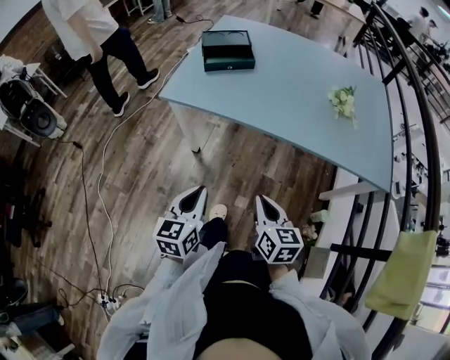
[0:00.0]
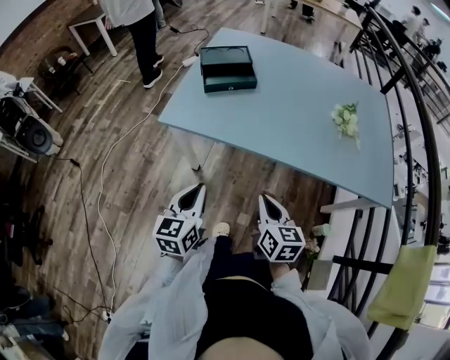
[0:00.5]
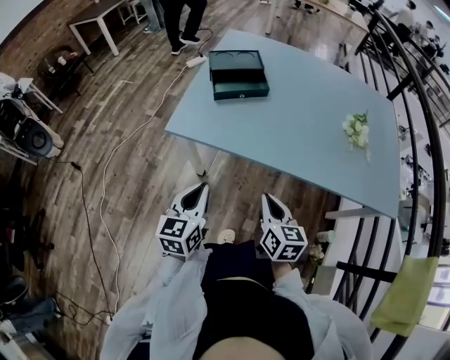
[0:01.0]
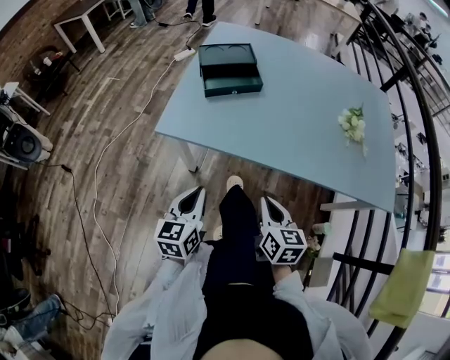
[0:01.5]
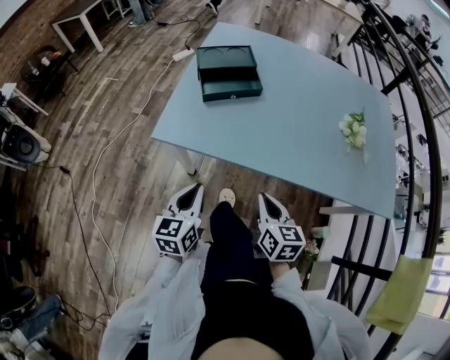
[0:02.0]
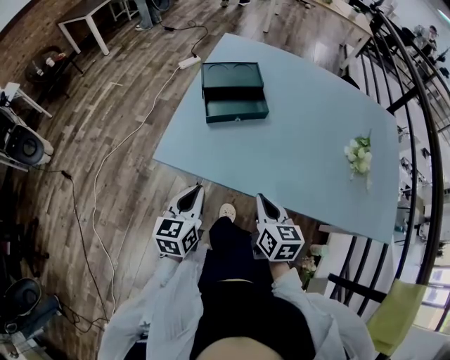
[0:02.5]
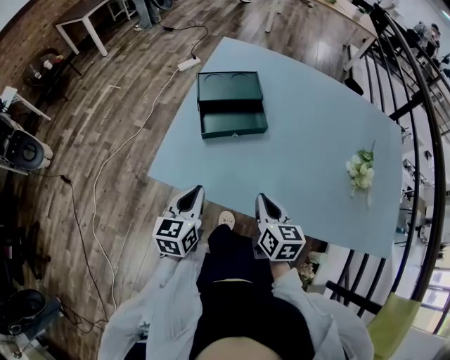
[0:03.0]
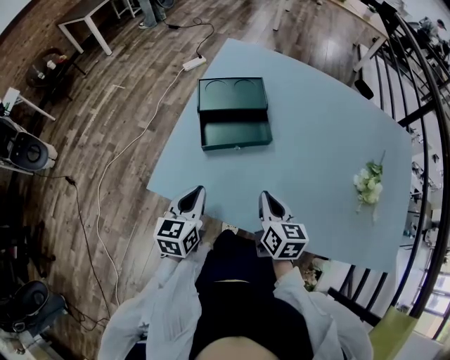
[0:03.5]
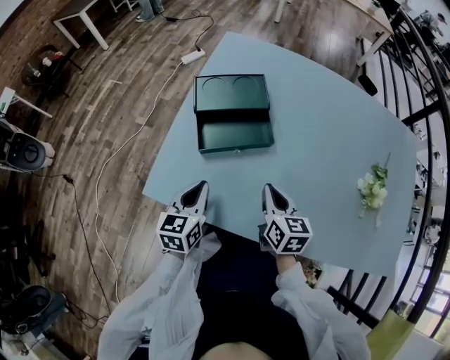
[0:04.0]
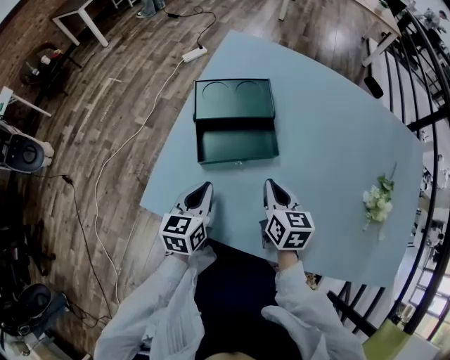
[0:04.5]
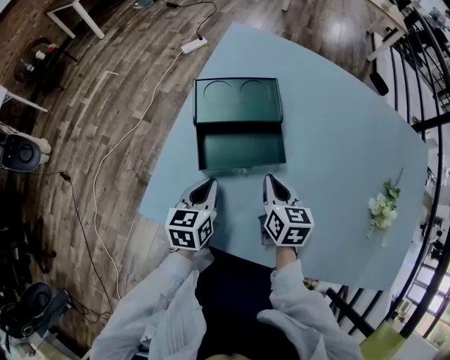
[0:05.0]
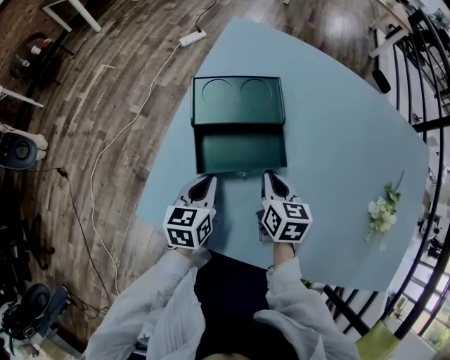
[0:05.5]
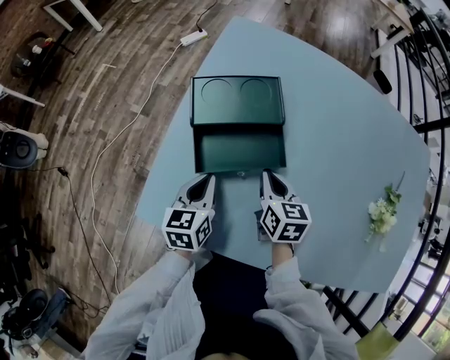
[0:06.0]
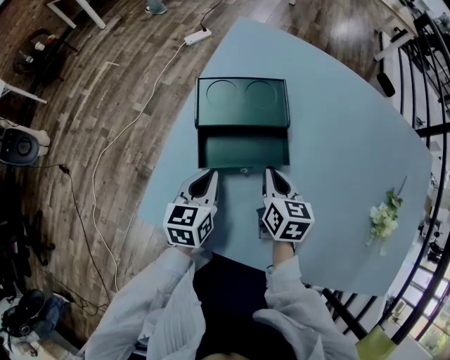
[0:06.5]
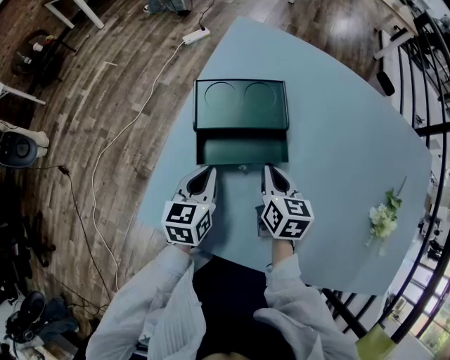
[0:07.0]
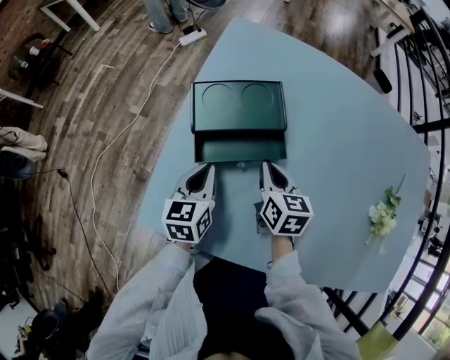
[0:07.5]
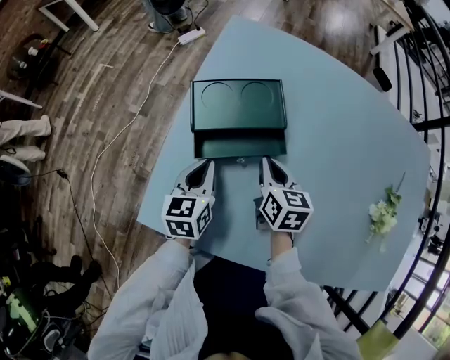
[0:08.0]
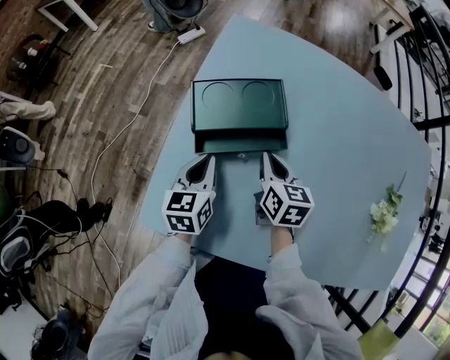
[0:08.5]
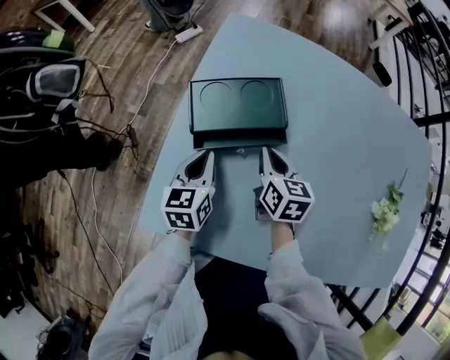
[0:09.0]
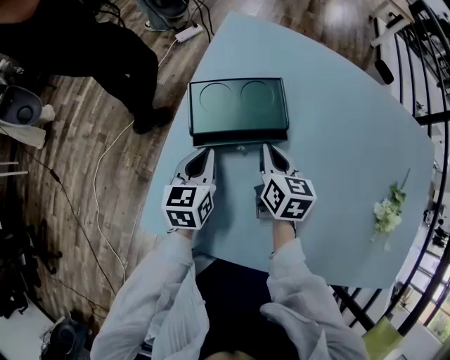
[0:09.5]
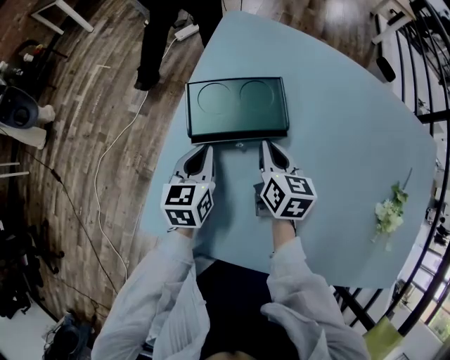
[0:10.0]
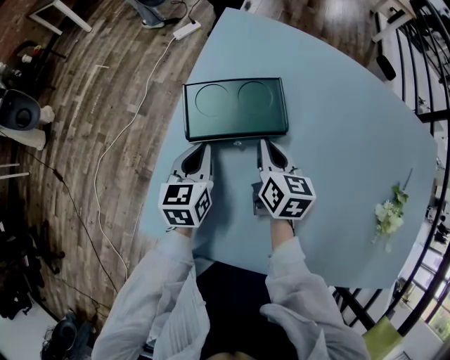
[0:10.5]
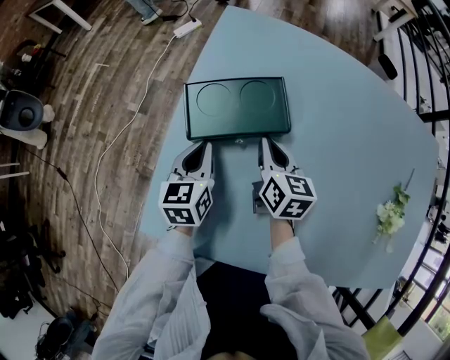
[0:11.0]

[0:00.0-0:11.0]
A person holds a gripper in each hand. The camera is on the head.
0:00.0 to 0:02.0: The grippers both shift forward by approximately 20 cm.
0:02.0 to 0:03.5: Both grippers travel together forward, roughly 20 cm.
0:03.5 to 0:05.5: The left gripper goes about 15 cm forward and downward, while the right gripper moves forward, about 15 cm.
0:05.5 to 0:07.5: The grippers move only a little.
0:07.5 to 0:09.0: There are only small adjustments of the grippers.
0:09.0 to 0:11.0: The grippers move only a little.

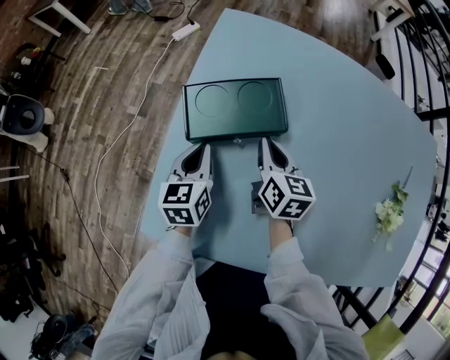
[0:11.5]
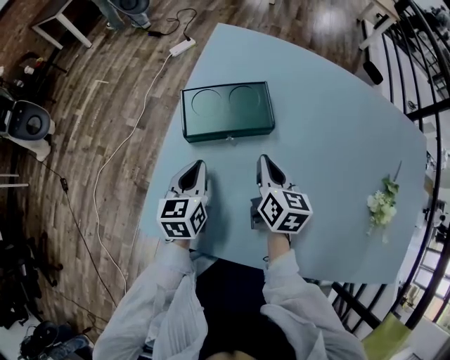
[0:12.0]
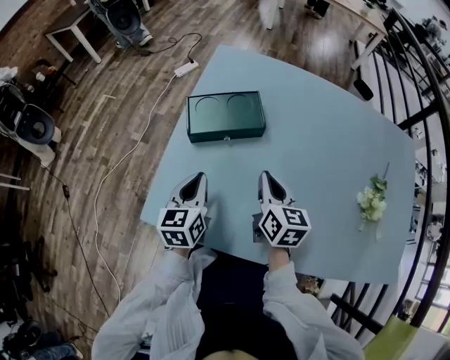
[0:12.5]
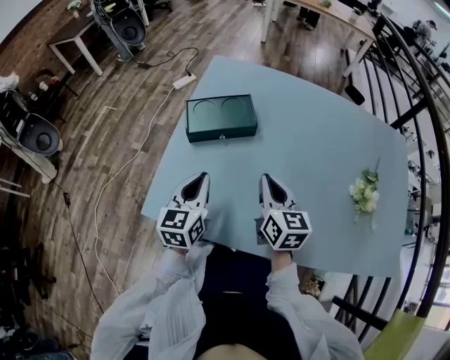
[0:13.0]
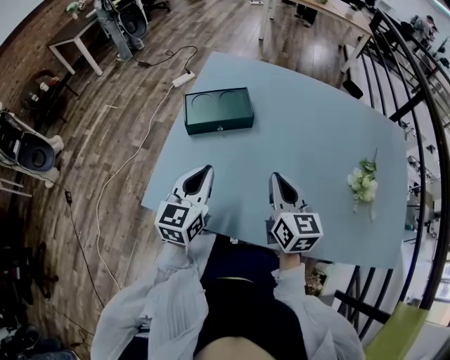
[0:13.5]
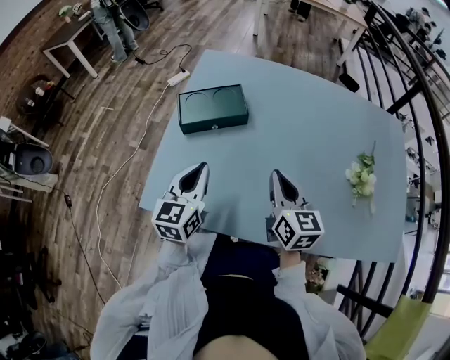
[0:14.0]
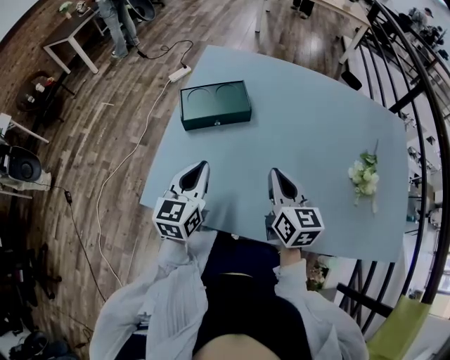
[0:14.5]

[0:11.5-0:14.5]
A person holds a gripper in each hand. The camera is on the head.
0:11.5 to 0:13.0: Both grippers move backward and upward, roughly 20 cm.
0:13.0 to 0:14.5: The right gripper shifts by about 5 cm.

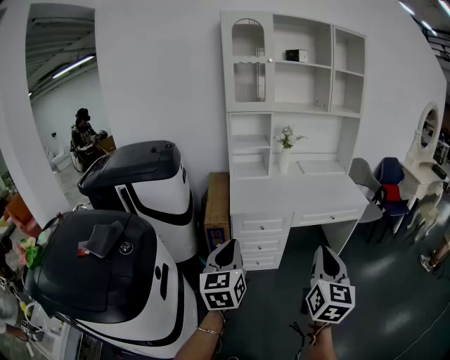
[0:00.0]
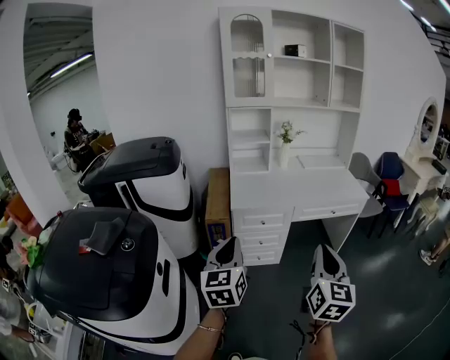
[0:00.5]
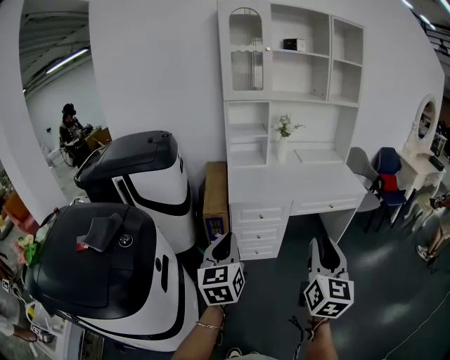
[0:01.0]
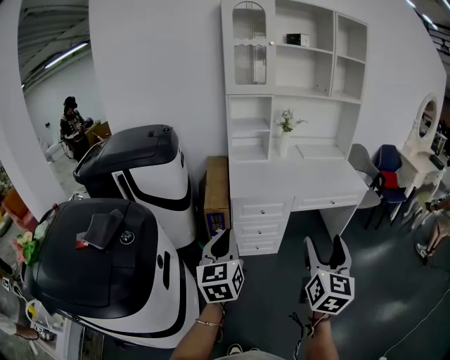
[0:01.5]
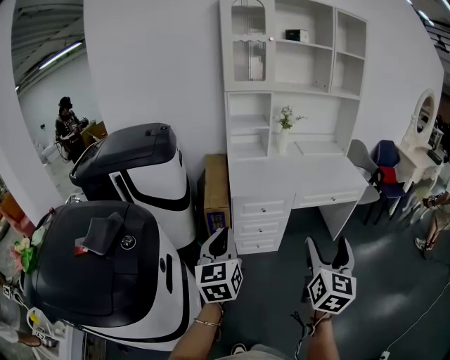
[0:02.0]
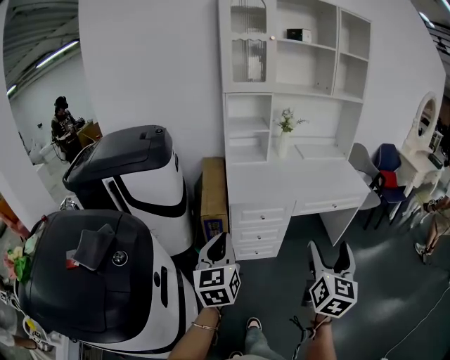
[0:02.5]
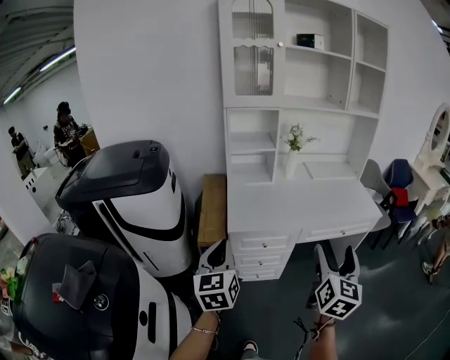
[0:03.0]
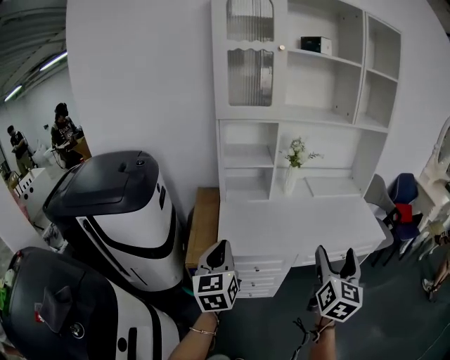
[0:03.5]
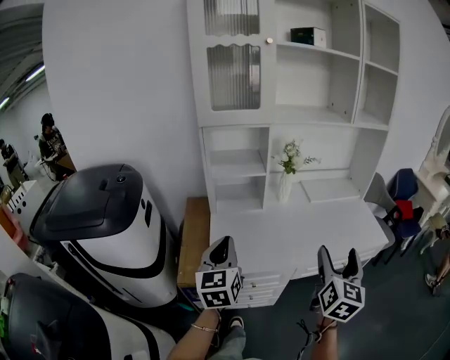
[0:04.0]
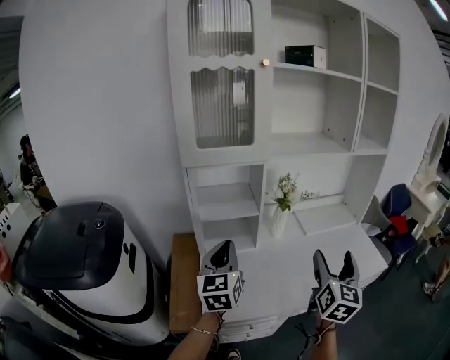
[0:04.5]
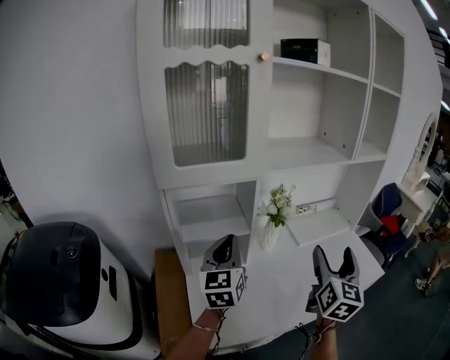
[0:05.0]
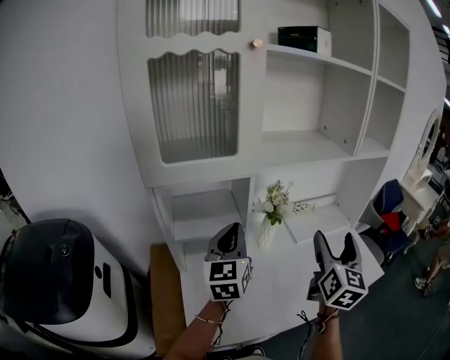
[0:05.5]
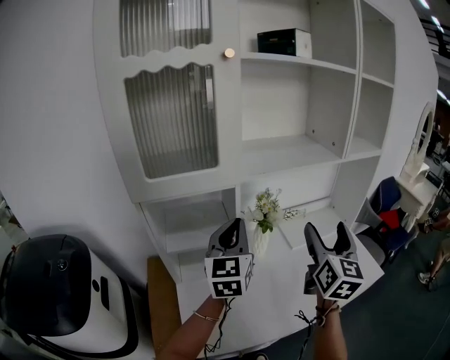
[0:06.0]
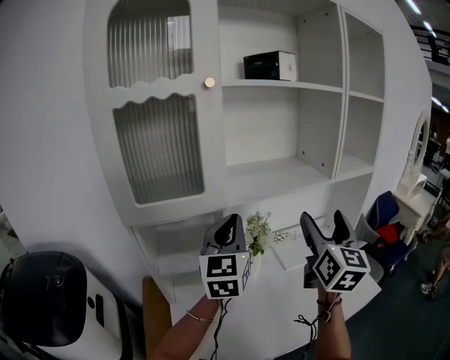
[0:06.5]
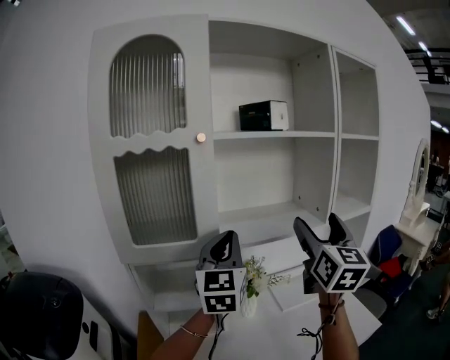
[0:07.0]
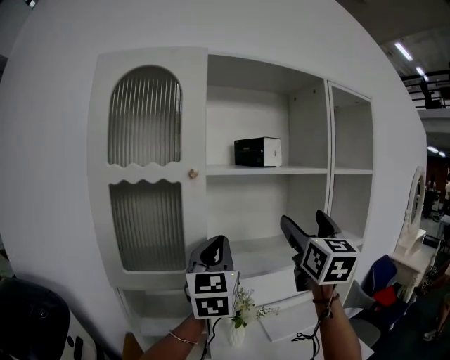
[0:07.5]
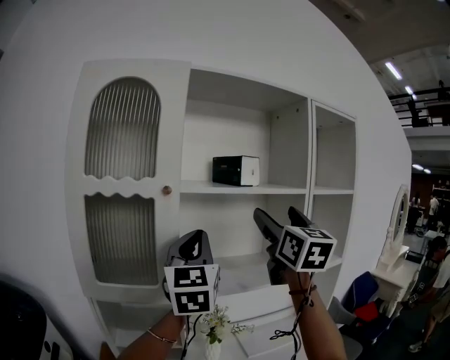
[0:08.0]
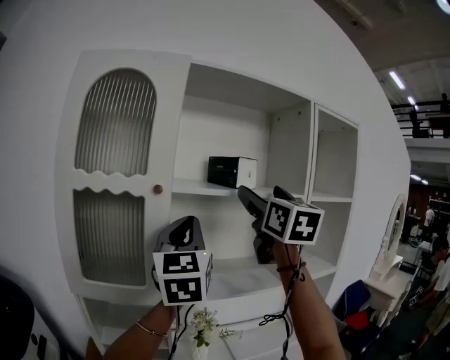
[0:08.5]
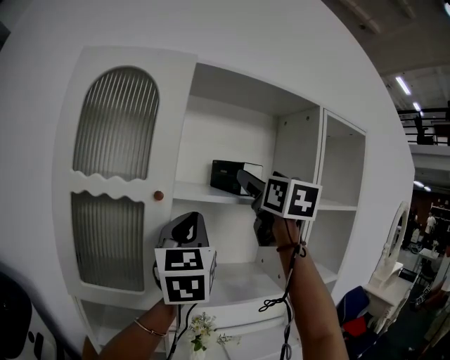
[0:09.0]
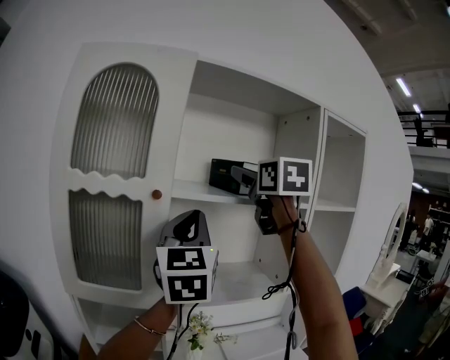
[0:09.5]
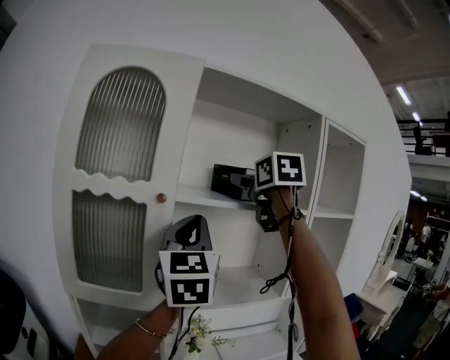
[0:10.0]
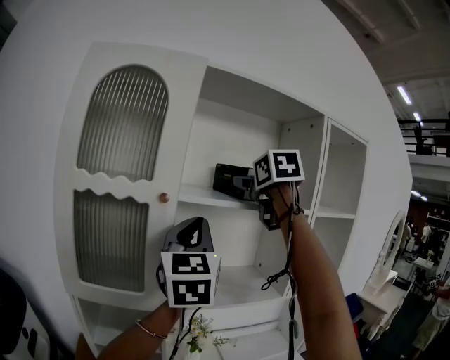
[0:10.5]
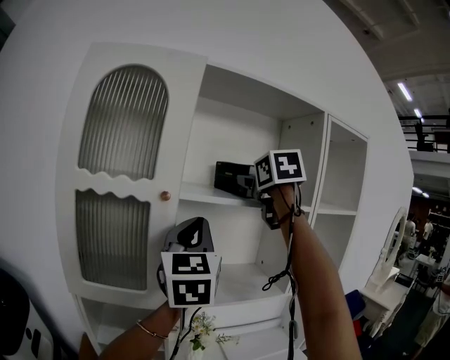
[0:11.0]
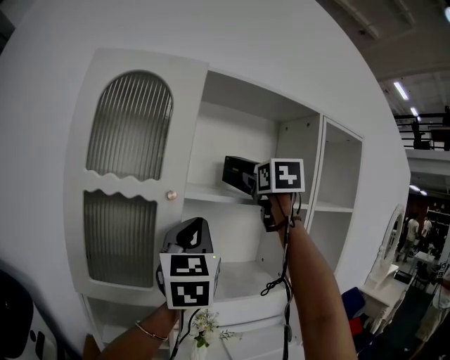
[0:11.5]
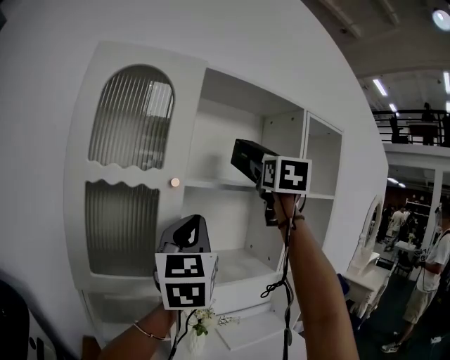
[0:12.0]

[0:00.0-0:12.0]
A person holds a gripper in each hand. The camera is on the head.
0:00.0 to 0:02.0: The right gripper opens its fingers; the left gripper goes roughly 5 cm to the left.
0:02.0 to 0:04.0: The pair of grippers is taken forward, roughly 40 cm.
0:04.0 to 0:06.0: Both grippers travel together forward, about 30 cm.
0:06.0 to 0:08.0: The right gripper is displaced upward and forward by roughly 35 cm, and swivels approximately 20 degrees, while the left gripper travels upward by approximately 30 cm, and turns by some 20 degrees.
0:08.0 to 0:10.0: The left gripper moves upward, approximately 5 cm, while the right gripper shifts some 15 cm forward and upward, and swivels about 30 degrees.
0:10.0 to 0:12.0: The left gripper shifts approximately 5 cm backward; the right gripper moves backward, some 10 cm, and rotates approximately 30 degrees.

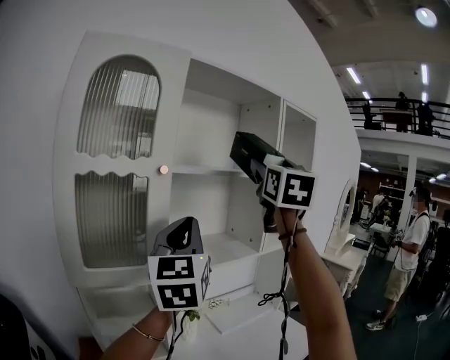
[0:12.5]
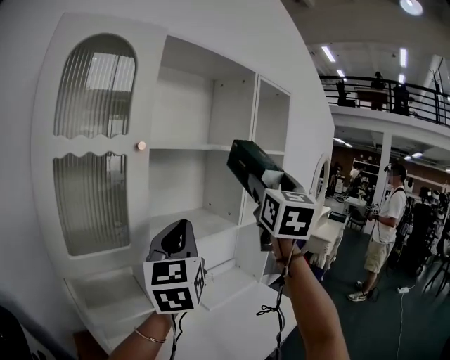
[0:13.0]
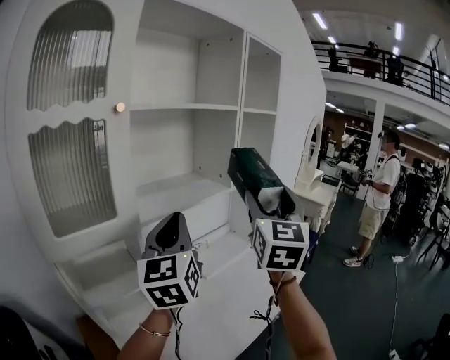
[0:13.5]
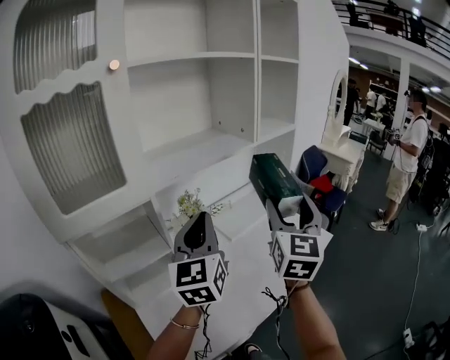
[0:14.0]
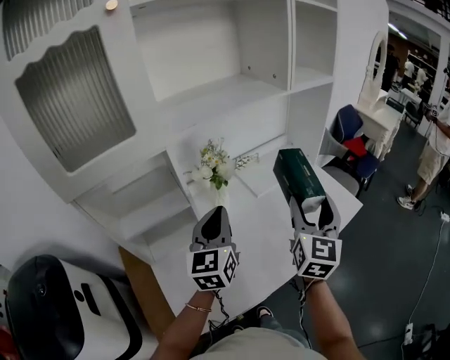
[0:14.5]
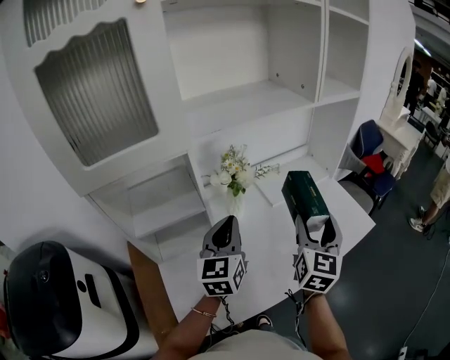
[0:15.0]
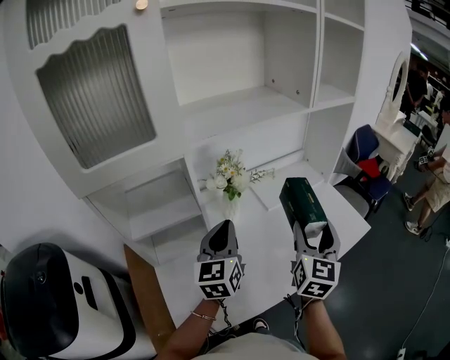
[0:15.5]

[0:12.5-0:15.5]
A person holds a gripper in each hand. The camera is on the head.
0:12.5 to 0:14.0: The left gripper moves downward, some 25 cm. The right gripper heads downward, covering approximately 40 cm, and swivels about 20 degrees.
0:14.0 to 0:15.5: Both grippers travel together downward, some 15 cm.
